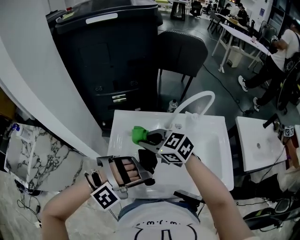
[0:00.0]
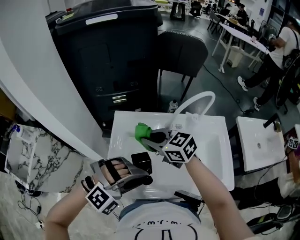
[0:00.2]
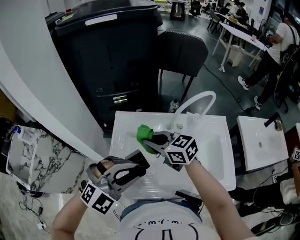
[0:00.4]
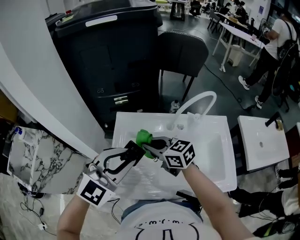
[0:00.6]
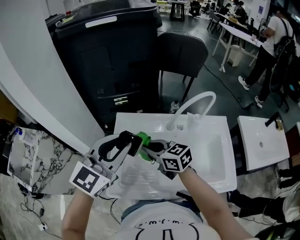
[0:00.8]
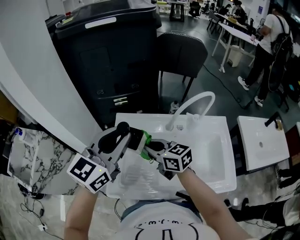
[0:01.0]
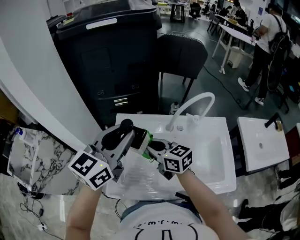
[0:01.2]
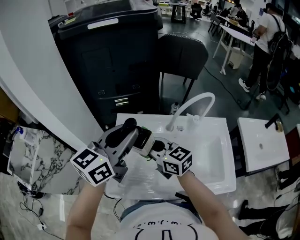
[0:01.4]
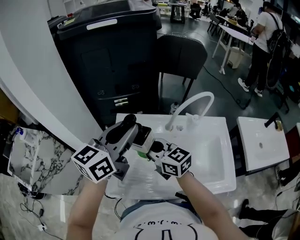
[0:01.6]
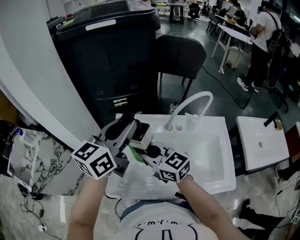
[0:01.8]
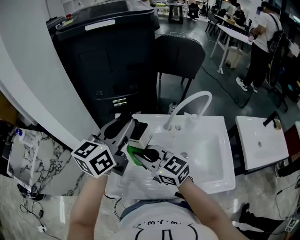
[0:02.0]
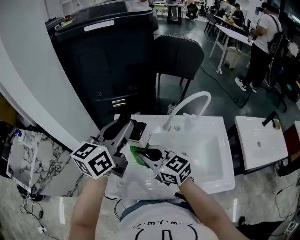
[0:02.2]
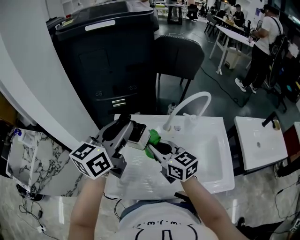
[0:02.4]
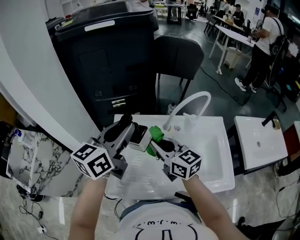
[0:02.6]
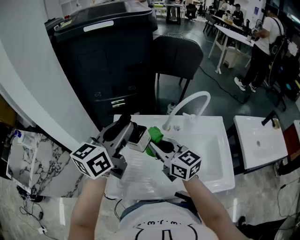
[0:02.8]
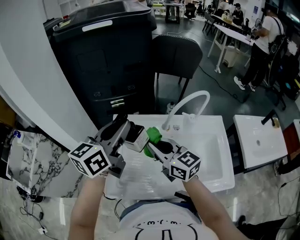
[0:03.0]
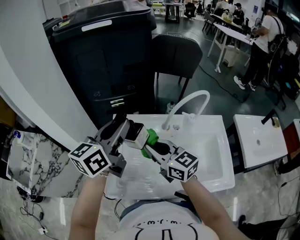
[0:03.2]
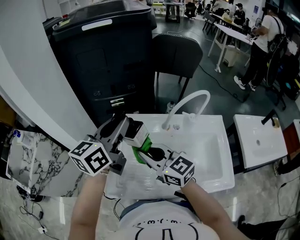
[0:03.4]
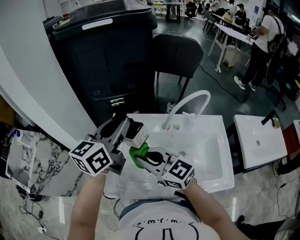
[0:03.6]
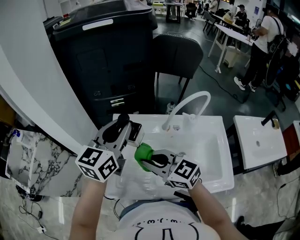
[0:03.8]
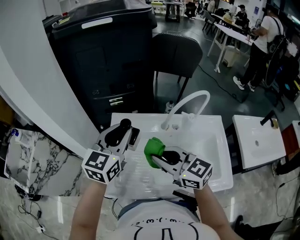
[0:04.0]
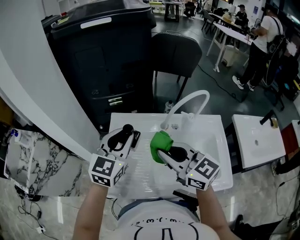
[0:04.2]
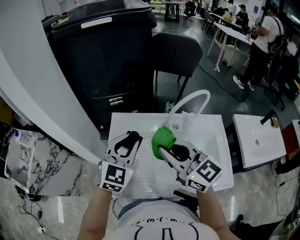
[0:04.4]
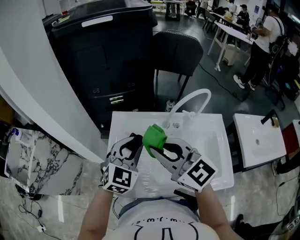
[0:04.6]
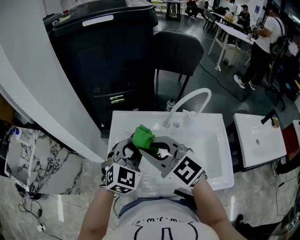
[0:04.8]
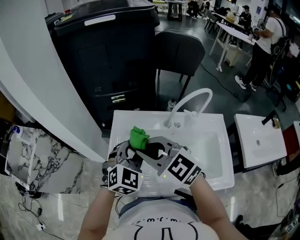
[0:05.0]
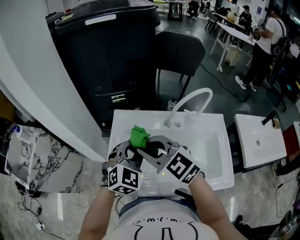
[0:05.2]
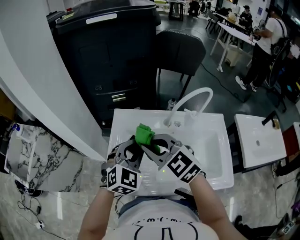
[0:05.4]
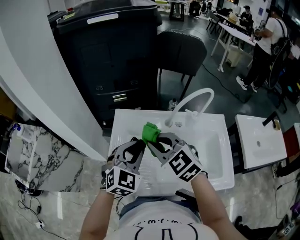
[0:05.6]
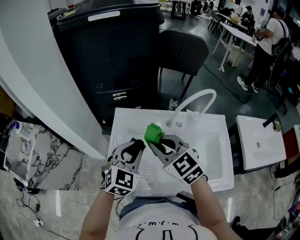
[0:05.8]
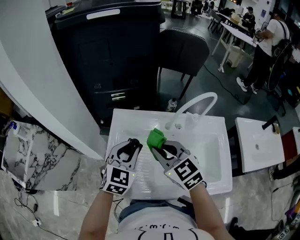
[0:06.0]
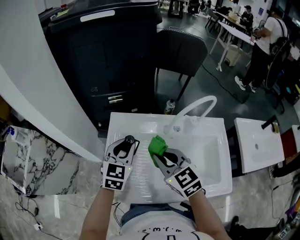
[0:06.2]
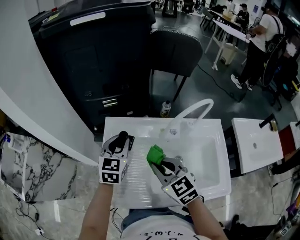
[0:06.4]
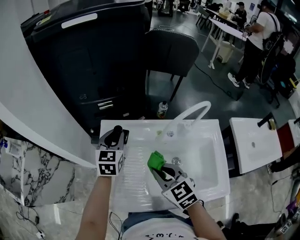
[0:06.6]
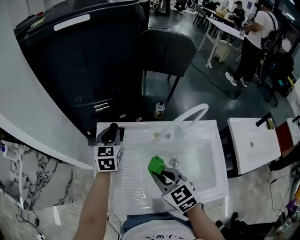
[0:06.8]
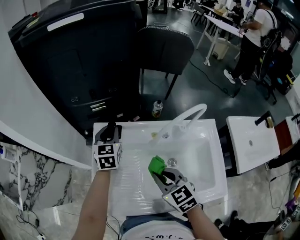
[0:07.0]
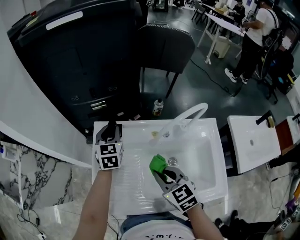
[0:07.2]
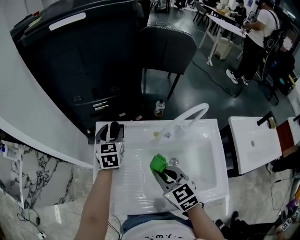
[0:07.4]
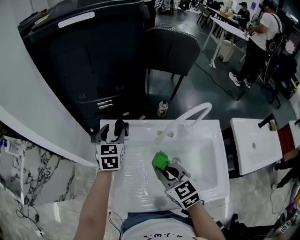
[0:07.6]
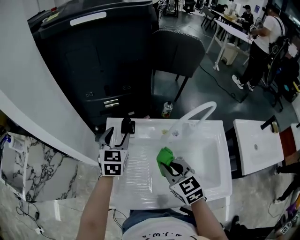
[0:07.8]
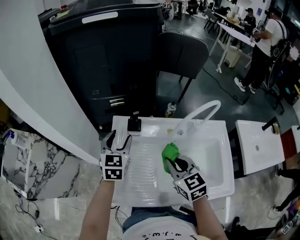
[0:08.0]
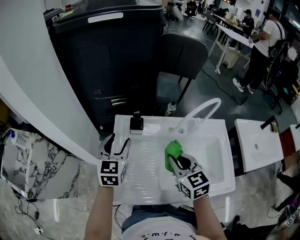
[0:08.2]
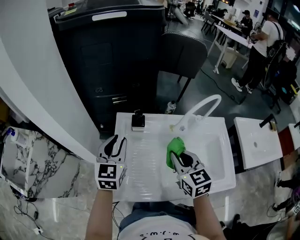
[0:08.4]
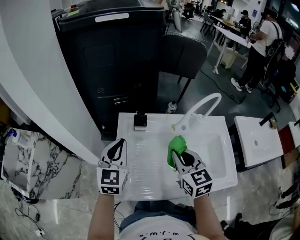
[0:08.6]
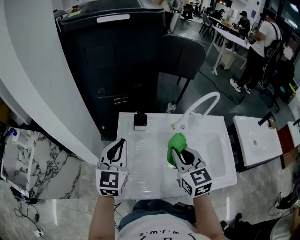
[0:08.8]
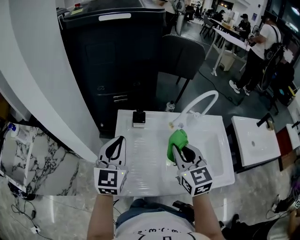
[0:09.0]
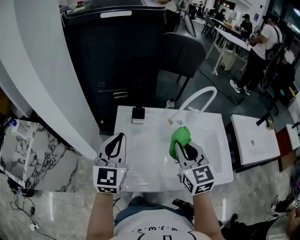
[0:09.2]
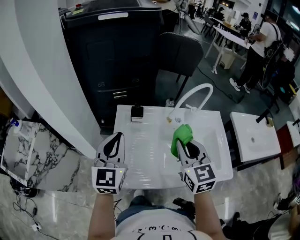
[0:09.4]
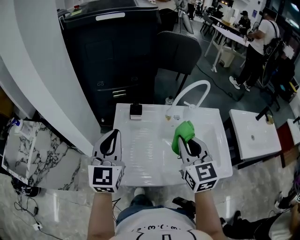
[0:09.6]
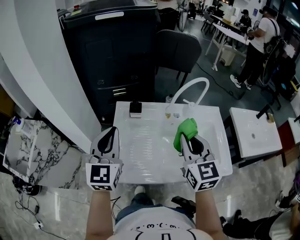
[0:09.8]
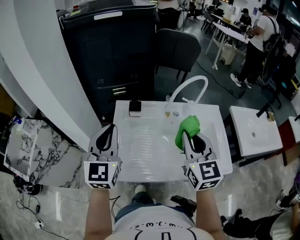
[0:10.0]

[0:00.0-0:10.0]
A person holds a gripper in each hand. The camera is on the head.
0:00.0 to 0:01.4: The left gripper shifts about 20 cm forward and upward, and twists about 110 degrees counterclockwise, seen from behind, while the right gripper rotates roughly 30 degrees.
0:01.4 to 0:02.8: The grippers stay close to where they were, moving slightly.
0:02.8 to 0:04.2: The left gripper heads downward, covering some 5 cm, and swivels some 30 degrees, while the right gripper is displaced backward by about 5 cm, and moves roughly 5 cm to the left and comes back.
0:04.2 to 0:05.8: The left gripper travels downward by approximately 5 cm, and turns by about 20 degrees. Meanwhile the right gripper changes place by some 5 cm, and rotates some 20 degrees.
0:05.8 to 0:07.2: The left gripper heads forward, covering approximately 20 cm, and changes its angle by about 30 degrees. Meanwhile the right gripper moves downward and to the right, approximately 10 cm, and rotates approximately 20 degrees.
0:07.2 to 0:08.6: The right gripper moves upward, approximately 5 cm. The left gripper shifts about 20 cm backward, to the left and upward, and opens, then closes again.
0:08.6 to 0:10.0: The left gripper goes about 10 cm upward and backward, while the right gripper goes approximately 10 cm upward, to the right and backward.

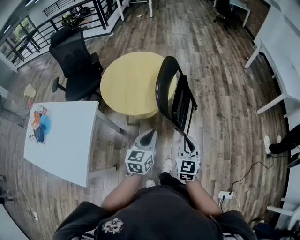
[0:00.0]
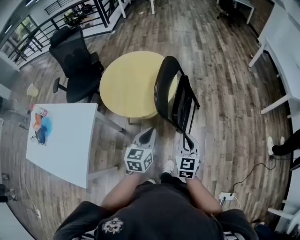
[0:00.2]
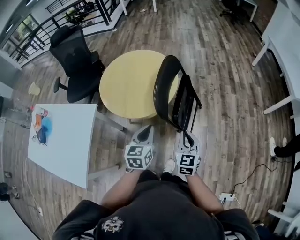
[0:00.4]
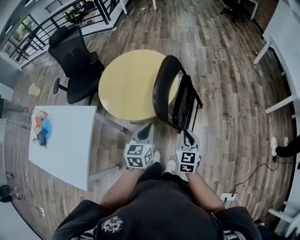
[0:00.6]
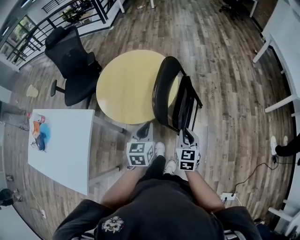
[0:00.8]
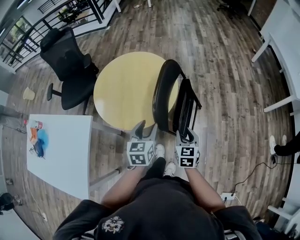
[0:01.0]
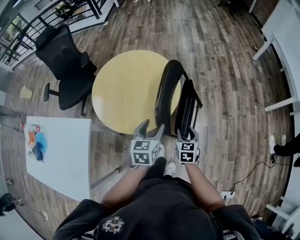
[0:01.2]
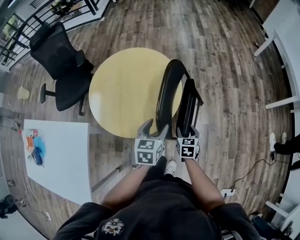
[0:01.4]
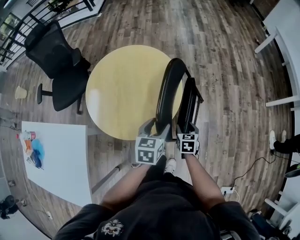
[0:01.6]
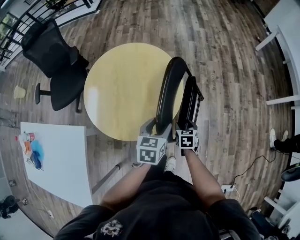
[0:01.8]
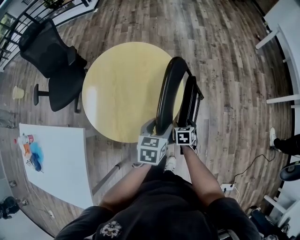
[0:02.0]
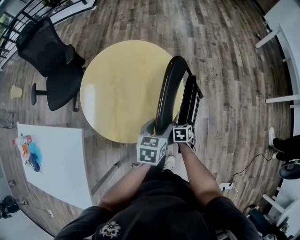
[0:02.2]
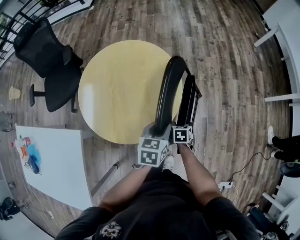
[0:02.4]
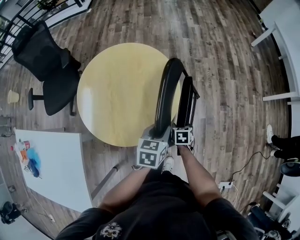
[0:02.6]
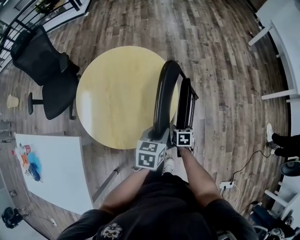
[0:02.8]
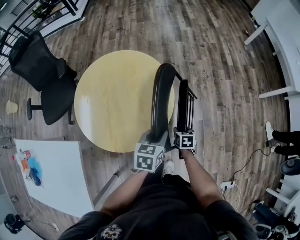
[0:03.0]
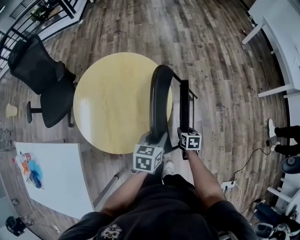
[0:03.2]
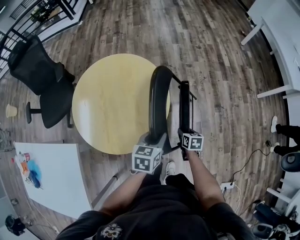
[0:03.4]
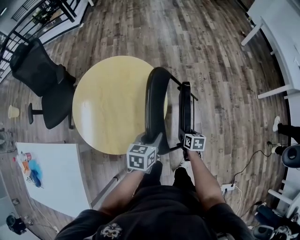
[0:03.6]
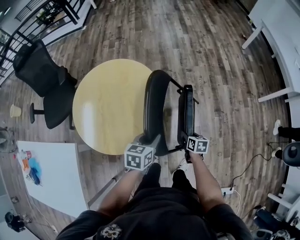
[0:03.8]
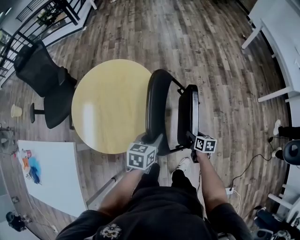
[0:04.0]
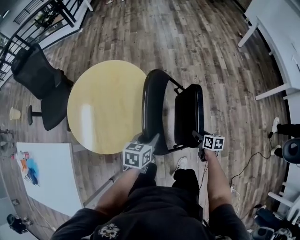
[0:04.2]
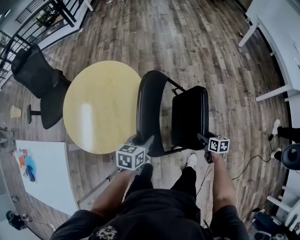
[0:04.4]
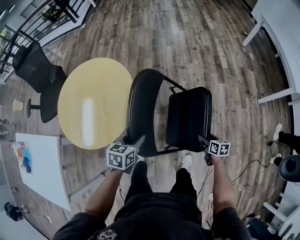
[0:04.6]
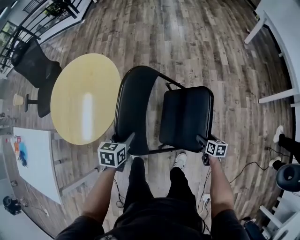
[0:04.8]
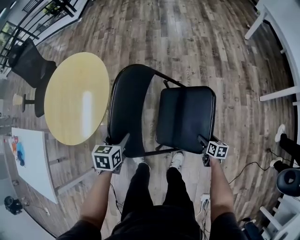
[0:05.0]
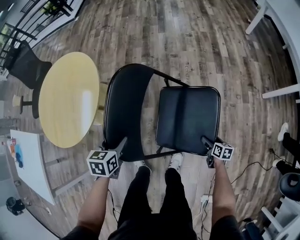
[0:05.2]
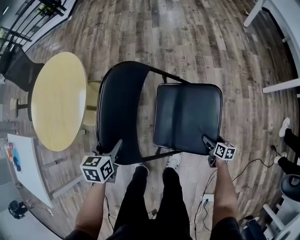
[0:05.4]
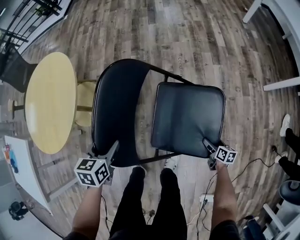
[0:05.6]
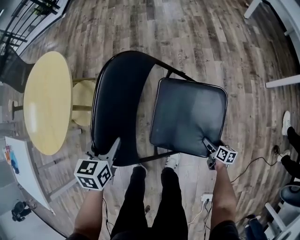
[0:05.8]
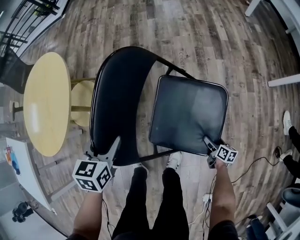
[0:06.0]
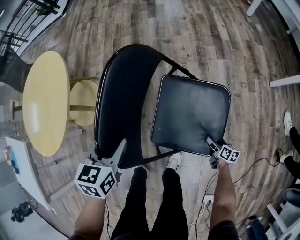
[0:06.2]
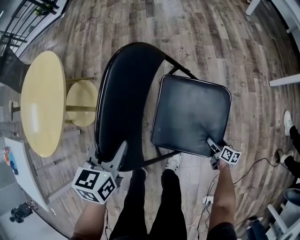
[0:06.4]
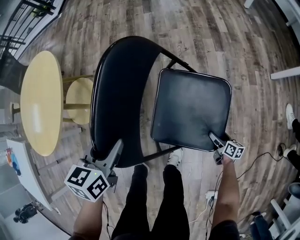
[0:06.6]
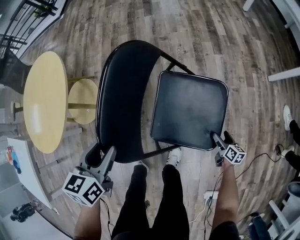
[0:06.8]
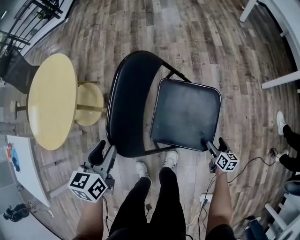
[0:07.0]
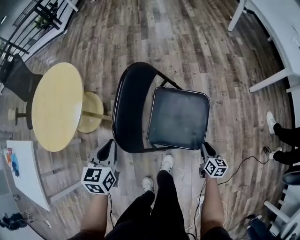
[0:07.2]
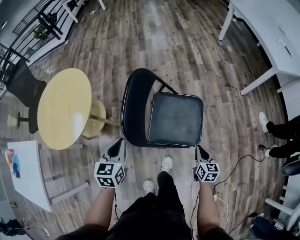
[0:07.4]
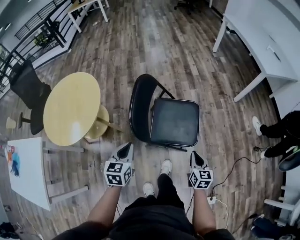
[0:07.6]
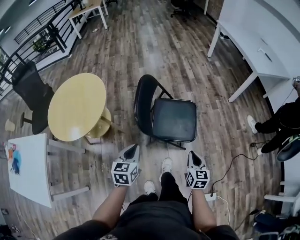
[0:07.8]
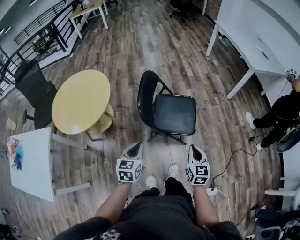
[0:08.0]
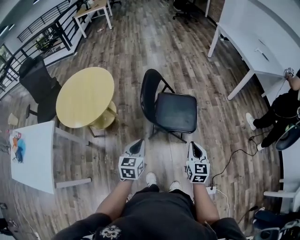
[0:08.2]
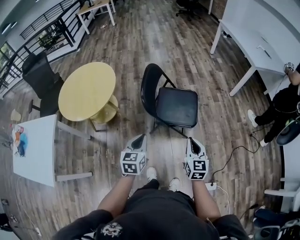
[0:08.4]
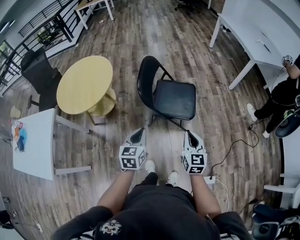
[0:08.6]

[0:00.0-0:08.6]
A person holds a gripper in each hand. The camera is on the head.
0:00.0 to 0:01.4: The right gripper goes about 35 cm forward and downward, changes its angle by about 30 degrees, and opens its fingers; the left gripper moves forward, roughly 25 cm, and opens.
0:01.4 to 0:02.8: The left gripper heads forward, covering some 5 cm, and closes. The right gripper goes about 10 cm downward and forward.
0:02.8 to 0:04.4: The right gripper is displaced to the right by some 35 cm, and turns by roughly 20 degrees. Meanwhile the left gripper moves to the right, some 15 cm.
0:04.4 to 0:05.8: The right gripper moves to the right and downward, some 40 cm, and opens up; the left gripper heads to the right and downward, covering some 25 cm, turns by roughly 20 degrees, and opens.
0:05.8 to 0:07.2: The left gripper shifts approximately 15 cm upward and backward, and closes its fingers; the right gripper goes about 20 cm upward, rotates about 20 degrees, and closes its fingers.
0:07.2 to 0:08.6: The left gripper goes approximately 35 cm backward and upward, while the right gripper is displaced upward and backward by some 50 cm, and rotates roughly 30 degrees.

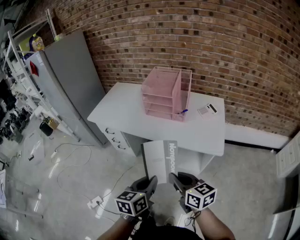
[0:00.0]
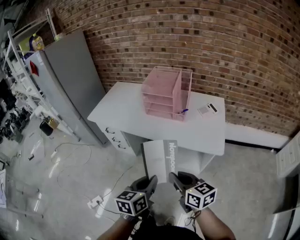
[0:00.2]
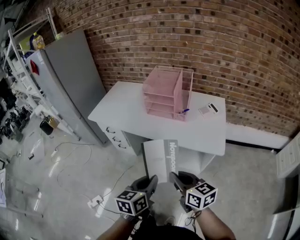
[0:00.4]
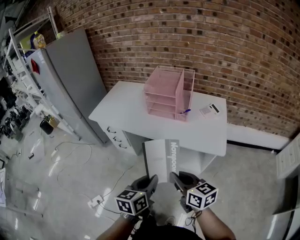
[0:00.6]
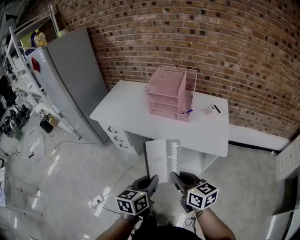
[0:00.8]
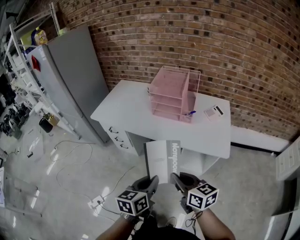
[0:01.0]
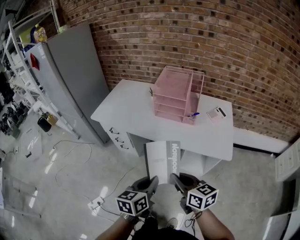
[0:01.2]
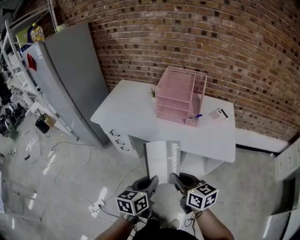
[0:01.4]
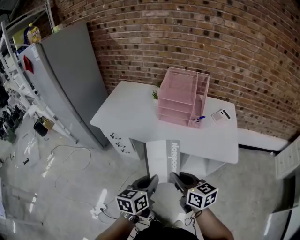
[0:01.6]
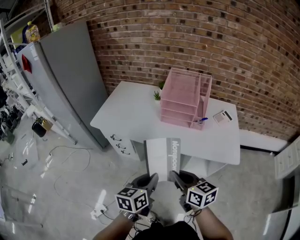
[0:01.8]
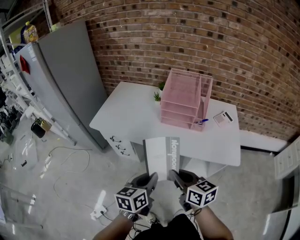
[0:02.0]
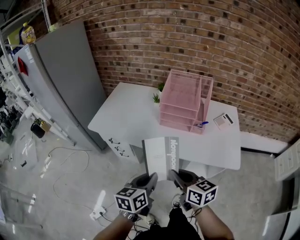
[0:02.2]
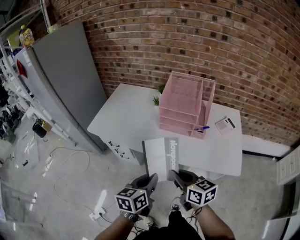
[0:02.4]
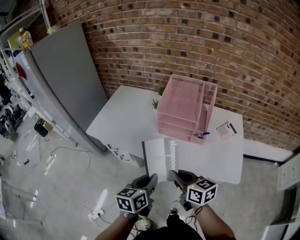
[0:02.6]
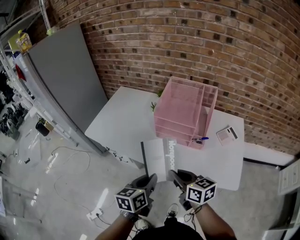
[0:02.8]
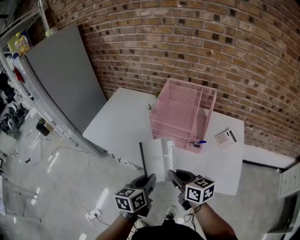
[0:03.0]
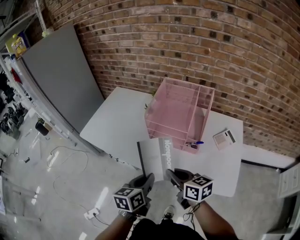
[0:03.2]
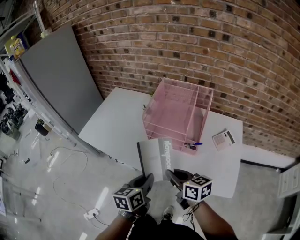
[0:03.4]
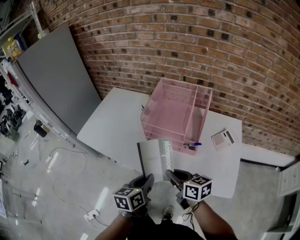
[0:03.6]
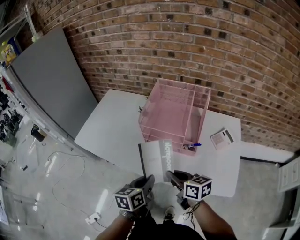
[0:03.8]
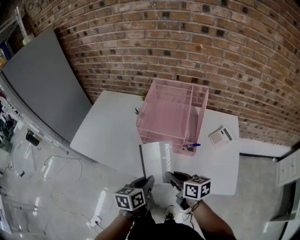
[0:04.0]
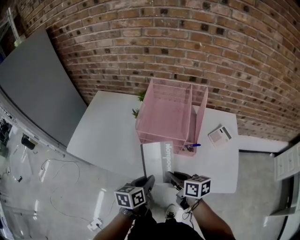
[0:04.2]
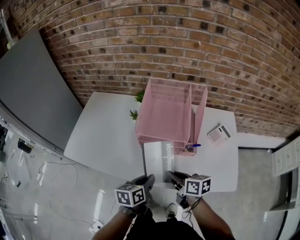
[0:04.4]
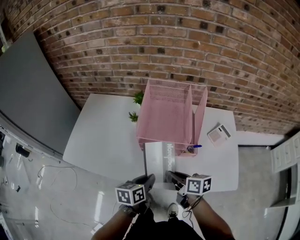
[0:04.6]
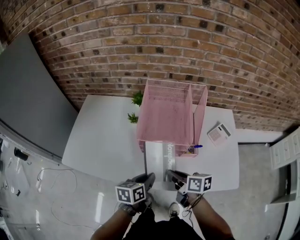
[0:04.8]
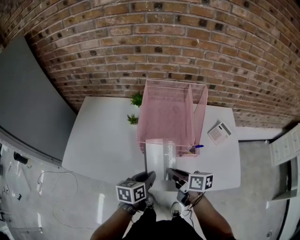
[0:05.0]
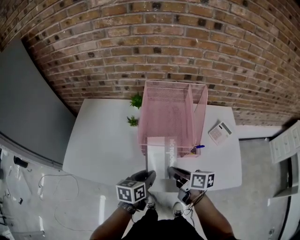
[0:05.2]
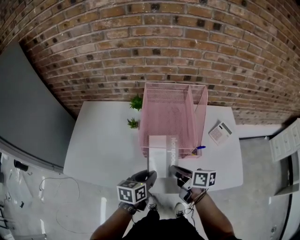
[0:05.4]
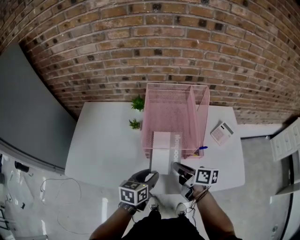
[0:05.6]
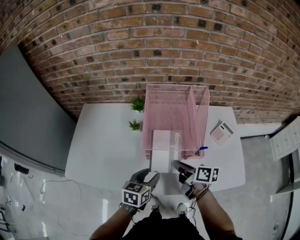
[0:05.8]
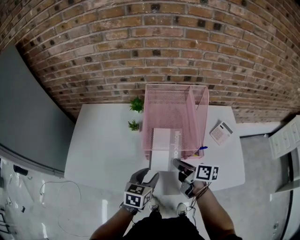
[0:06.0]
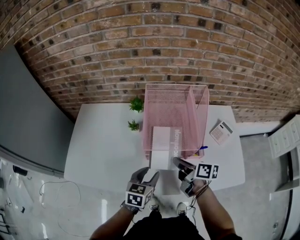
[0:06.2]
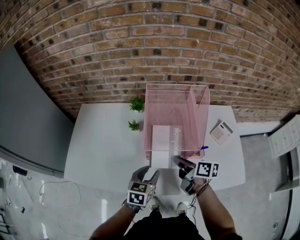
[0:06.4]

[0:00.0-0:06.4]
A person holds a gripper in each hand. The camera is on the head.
0:00.0 to 0:01.6: The two grippers go roughly 15 cm to the left and forward.
0:01.6 to 0:03.2: The two grippers go some 20 cm forward and to the right.
0:03.2 to 0:04.8: The grippers both shift forward and downward by roughly 15 cm. The left gripper turns by some 20 degrees. The right gripper swivels about 30 degrees.
0:04.8 to 0:06.4: The two grippers go about 10 cm forward. The left gripper rotates some 30 degrees, and opens up.
